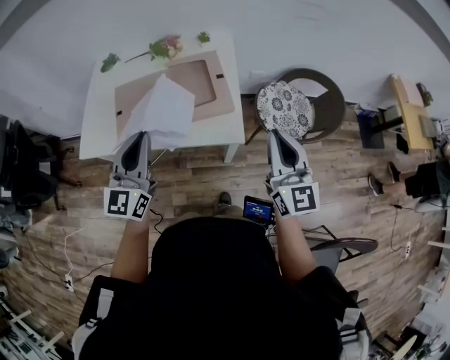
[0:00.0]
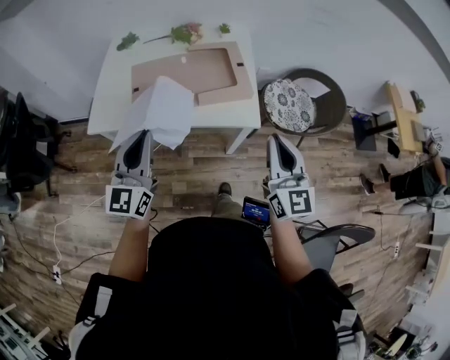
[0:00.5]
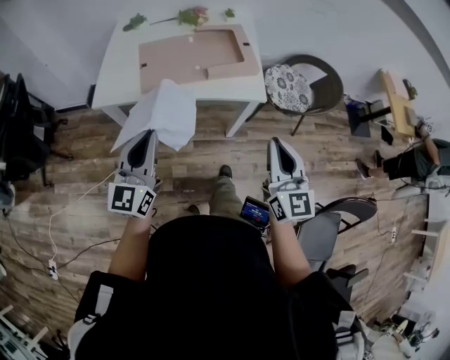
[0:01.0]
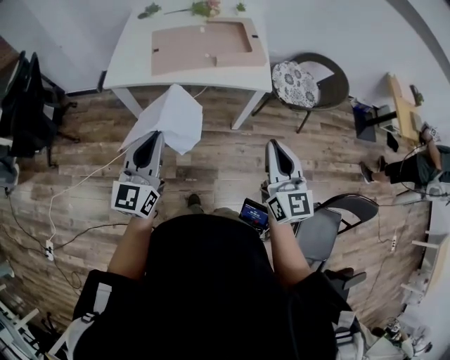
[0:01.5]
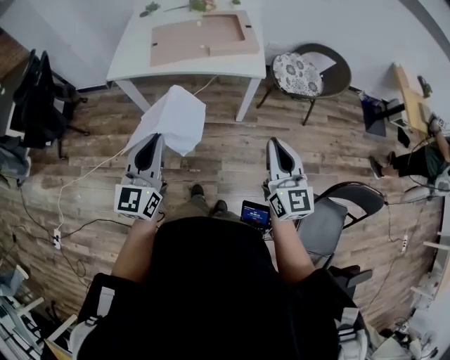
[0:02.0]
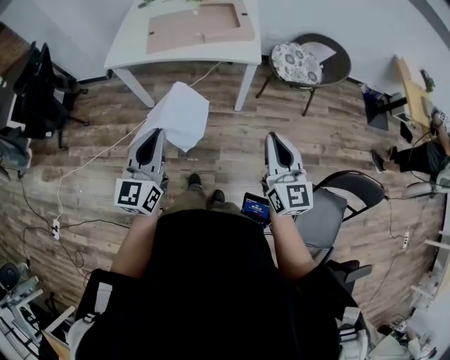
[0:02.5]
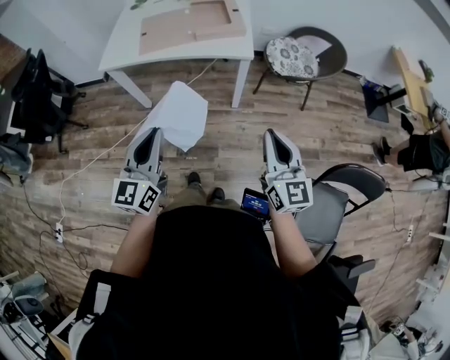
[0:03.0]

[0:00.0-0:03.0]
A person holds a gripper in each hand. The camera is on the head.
0:00.0 to 0:01.5: The grippers both shift backward and to the left by approximately 30 cm.
0:01.5 to 0:03.0: The left gripper shifts about 15 cm backward and to the right; the right gripper travels to the right and backward by approximately 15 cm.

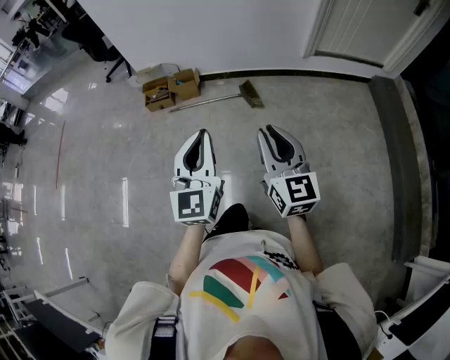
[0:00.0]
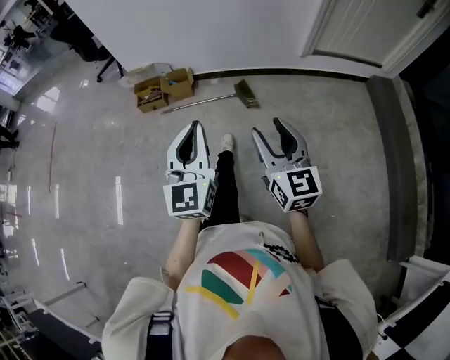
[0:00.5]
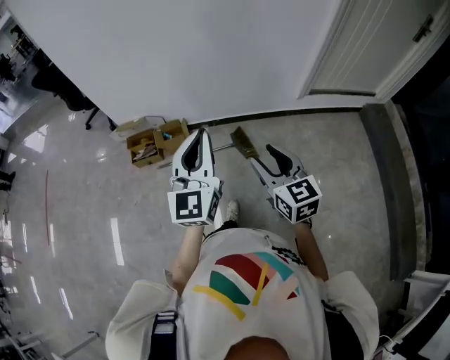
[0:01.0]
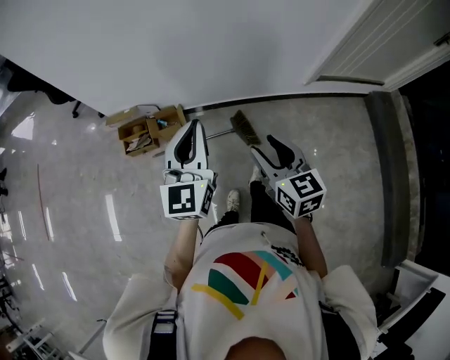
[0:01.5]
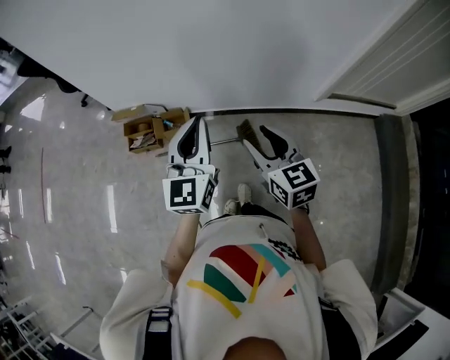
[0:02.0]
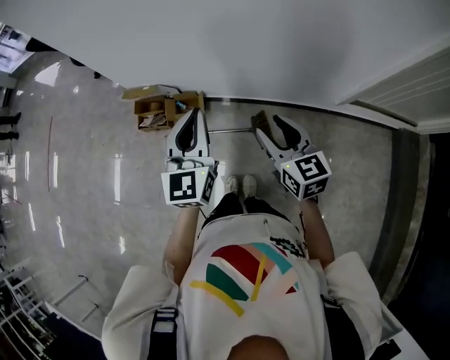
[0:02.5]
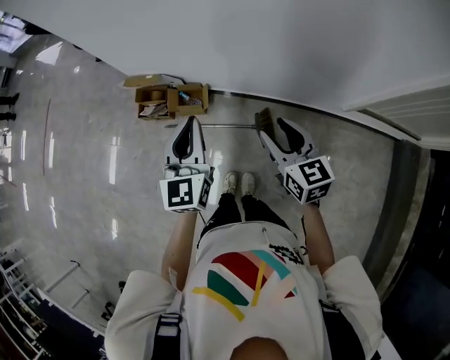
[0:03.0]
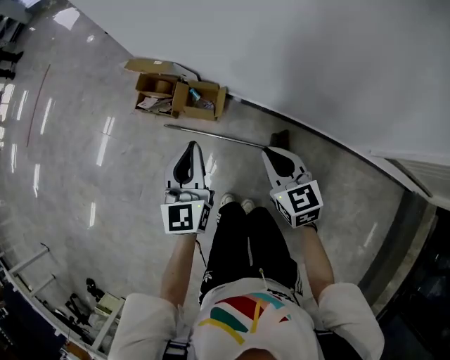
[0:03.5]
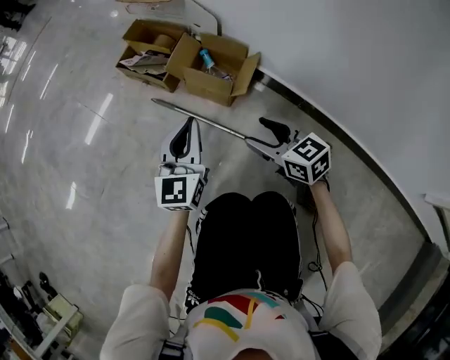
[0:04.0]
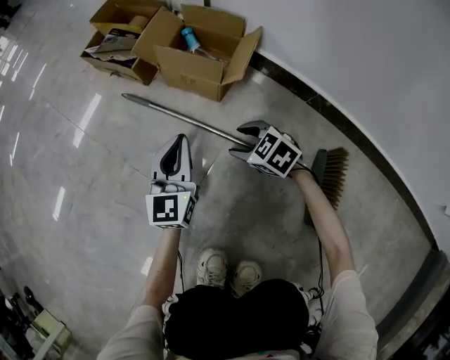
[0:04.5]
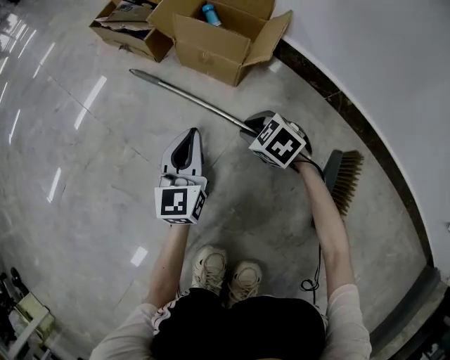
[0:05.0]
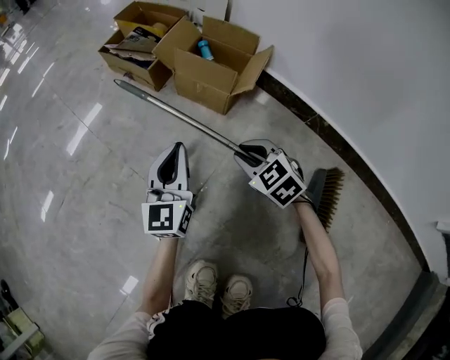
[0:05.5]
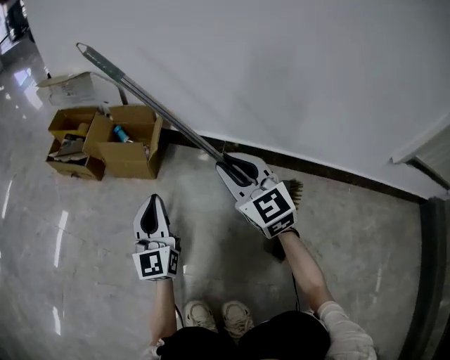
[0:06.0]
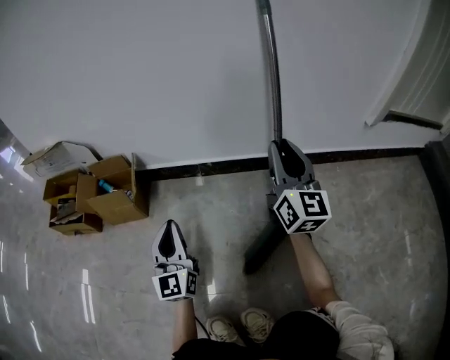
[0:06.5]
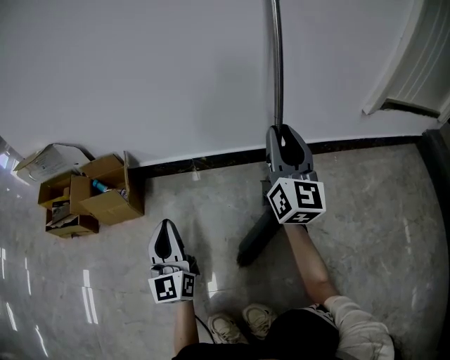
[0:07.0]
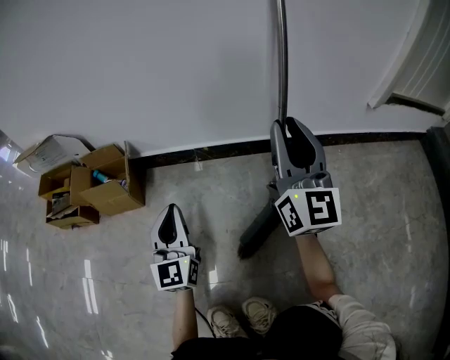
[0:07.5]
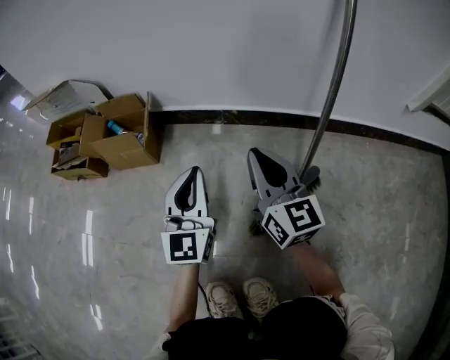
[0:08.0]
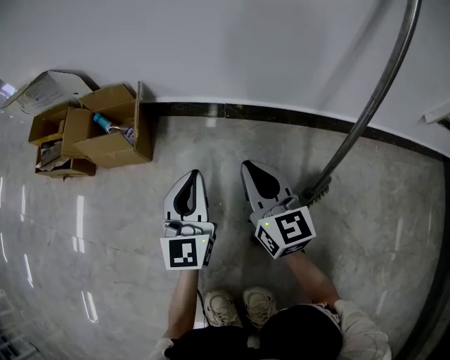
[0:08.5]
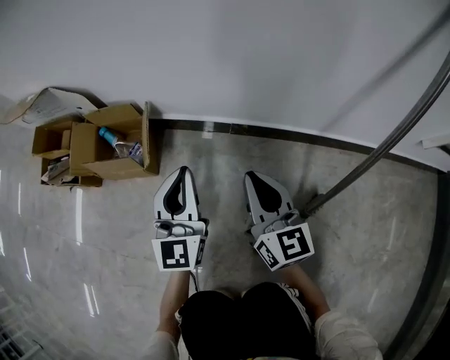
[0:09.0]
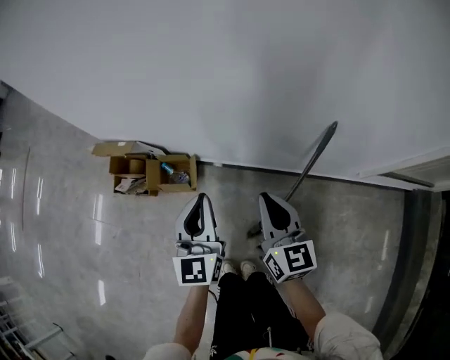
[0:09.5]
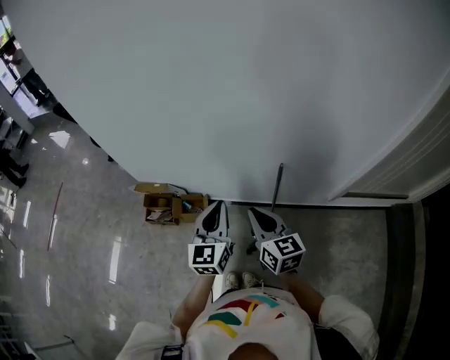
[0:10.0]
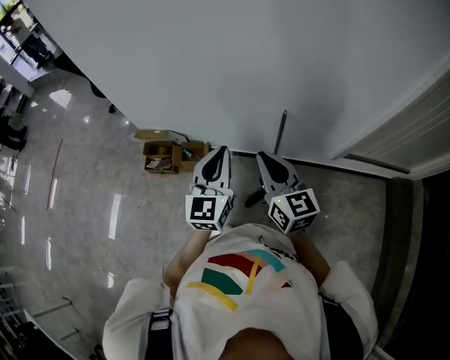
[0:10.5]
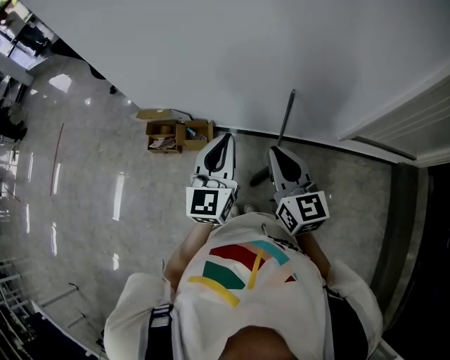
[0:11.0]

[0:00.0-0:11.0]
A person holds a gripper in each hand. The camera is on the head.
0:00.0 to 0:02.0: The pair of grippers is taken forward, about 60 cm. The right gripper changes its angle by roughly 20 degrees, and opens up.
0:02.0 to 0:03.5: The two grippers go roughly 35 cm downward and forward. The right gripper swivels roughly 30 degrees, and closes its fingers; the left gripper rotates approximately 30 degrees.
0:03.5 to 0:05.5: The grippers both shift downward by approximately 60 cm. The right gripper swivels about 40 degrees, and opens, then closes again.
0:05.5 to 0:07.5: The right gripper ends up about 50 cm from where it was, and angles its fingers upward, by approximately 60 degrees. The left gripper changes place by approximately 25 cm, and turns by about 30 degrees.
0:07.5 to 0:09.0: The right gripper travels downward and to the left by some 25 cm, and changes its angle by some 40 degrees. The left gripper shifts roughly 10 cm forward.
0:09.0 to 0:11.0: The two grippers go approximately 80 cm upward.

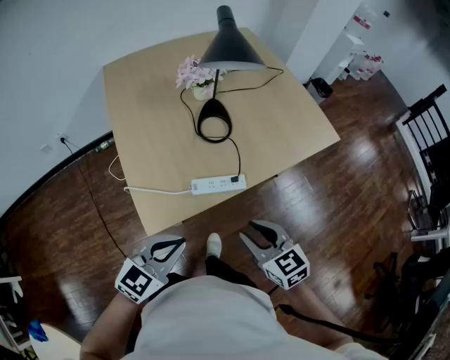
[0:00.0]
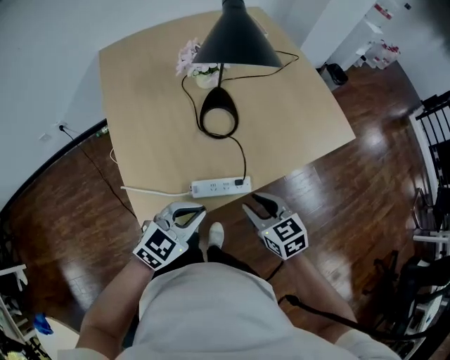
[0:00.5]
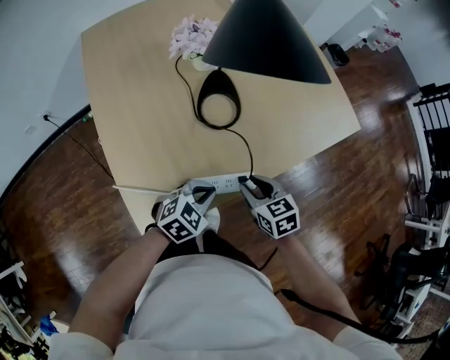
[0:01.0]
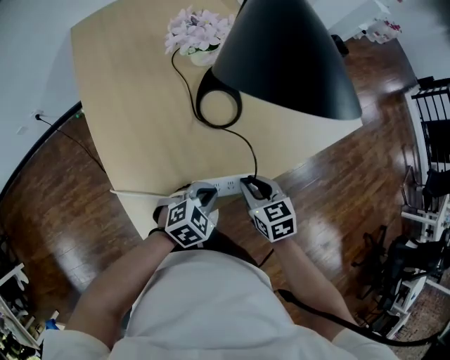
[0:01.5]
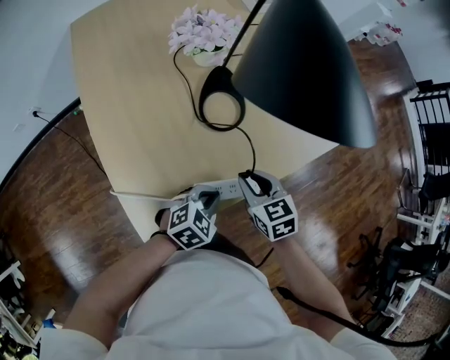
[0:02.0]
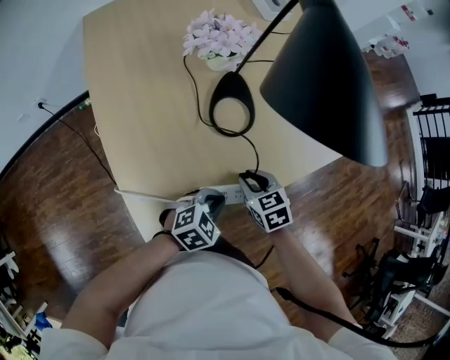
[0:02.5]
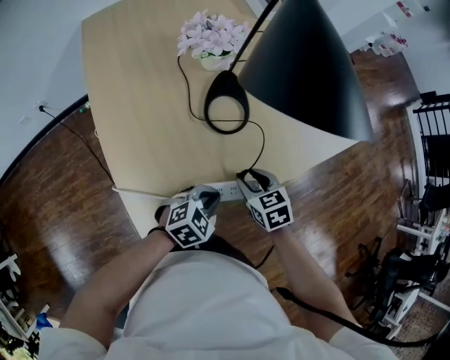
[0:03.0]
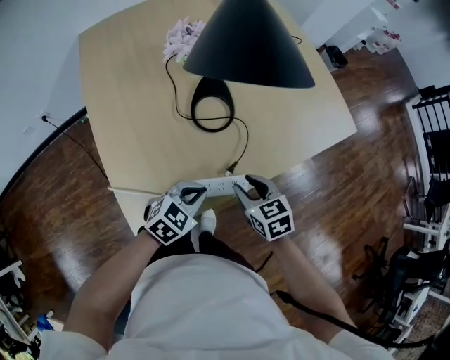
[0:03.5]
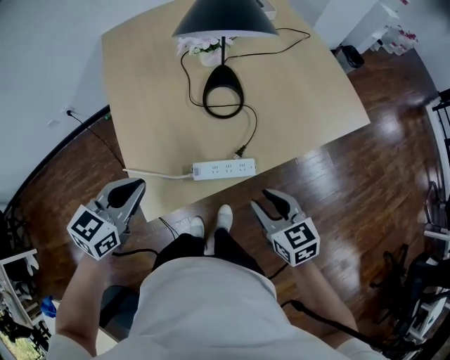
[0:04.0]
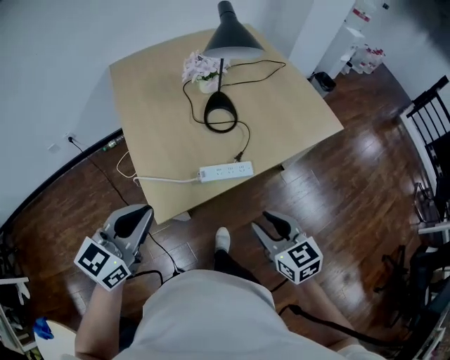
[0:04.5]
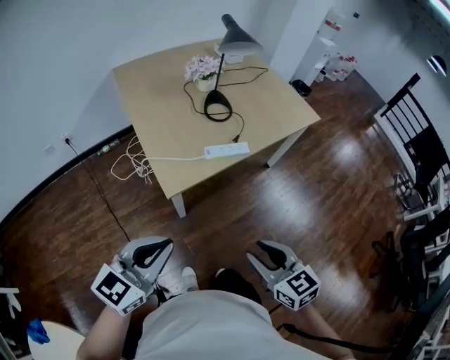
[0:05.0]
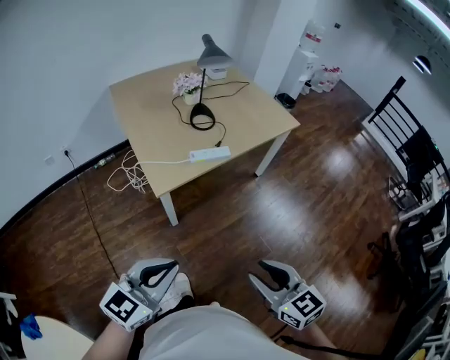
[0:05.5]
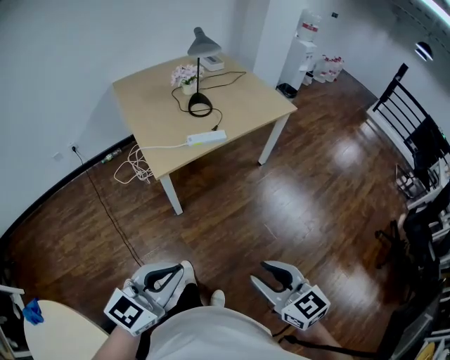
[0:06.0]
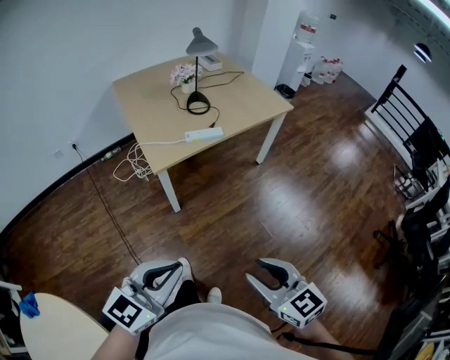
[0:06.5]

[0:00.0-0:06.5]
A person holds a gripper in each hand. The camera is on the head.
0:00.0 to 0:02.0: Both grippers move forward and downward, roughly 25 cm. The left gripper changes its angle by some 30 degrees.
0:02.0 to 0:04.5: The right gripper is displaced backward and upward by roughly 25 cm; the left gripper travels upward, backward and to the left by some 35 cm, and angles its fingers upward, by roughly 30 degrees.
0:04.5 to 0:06.5: Both grippers are carried backward, about 50 cm.

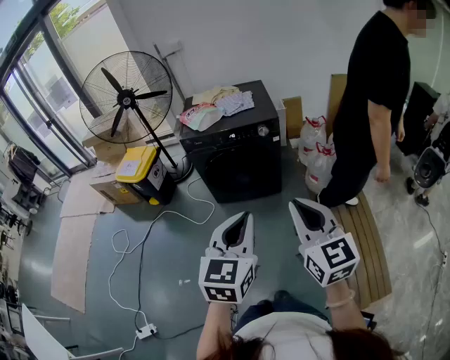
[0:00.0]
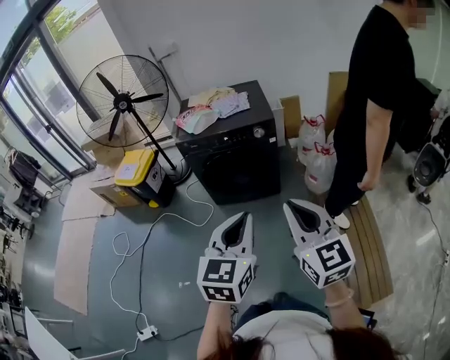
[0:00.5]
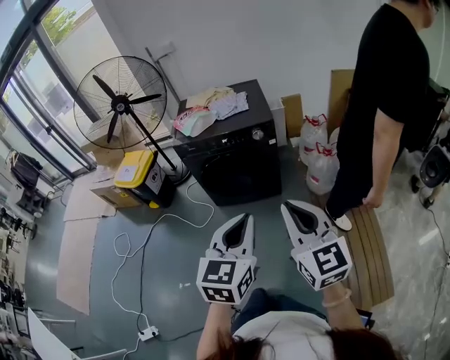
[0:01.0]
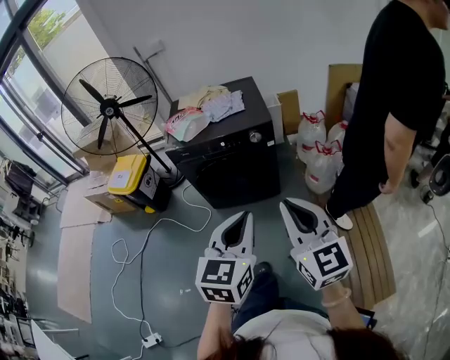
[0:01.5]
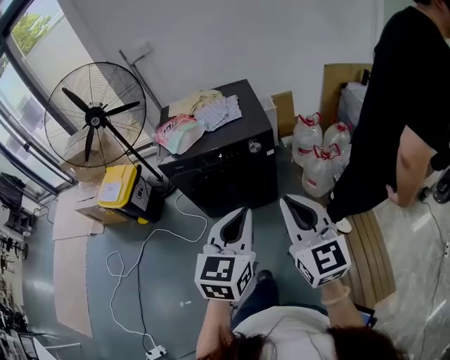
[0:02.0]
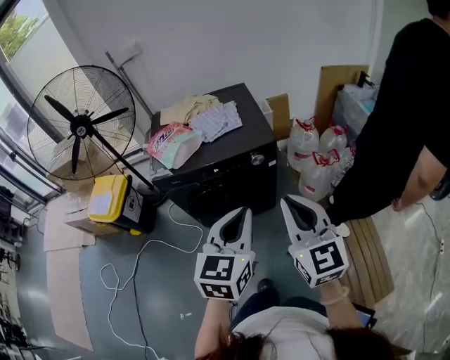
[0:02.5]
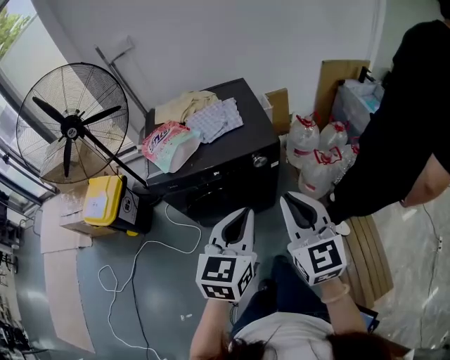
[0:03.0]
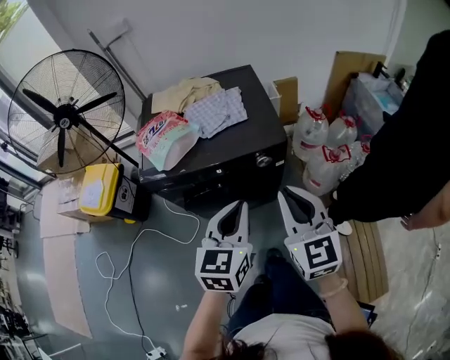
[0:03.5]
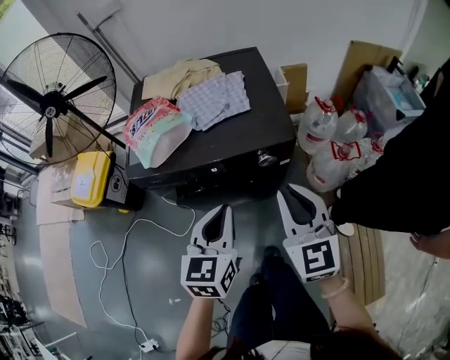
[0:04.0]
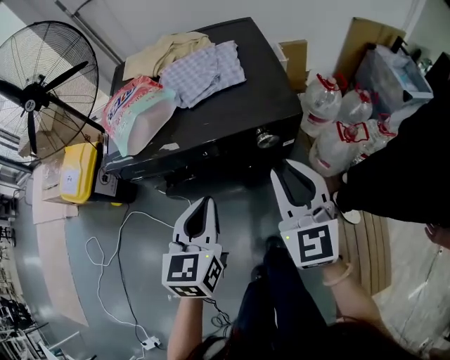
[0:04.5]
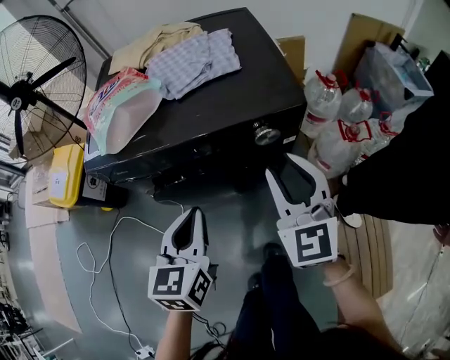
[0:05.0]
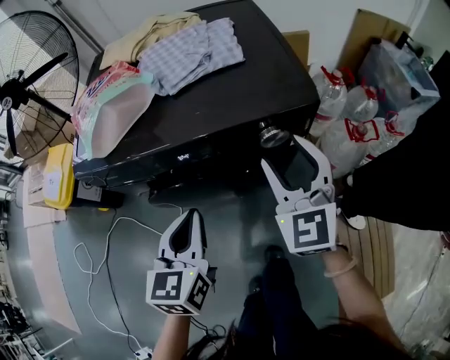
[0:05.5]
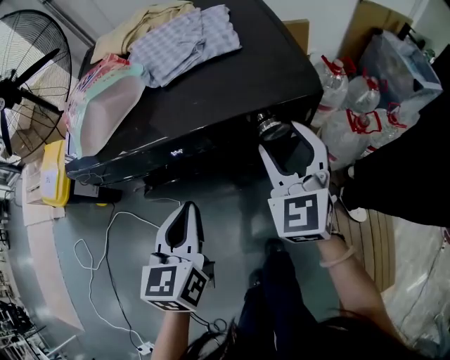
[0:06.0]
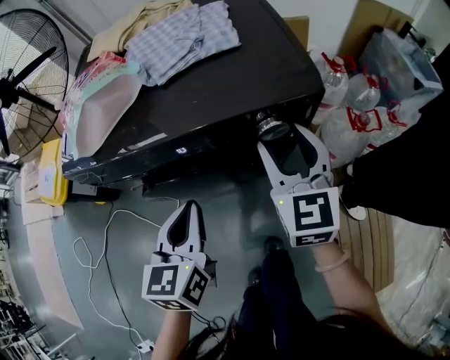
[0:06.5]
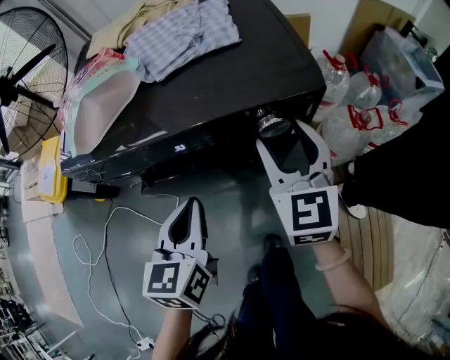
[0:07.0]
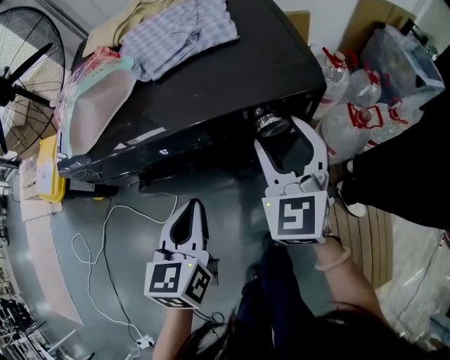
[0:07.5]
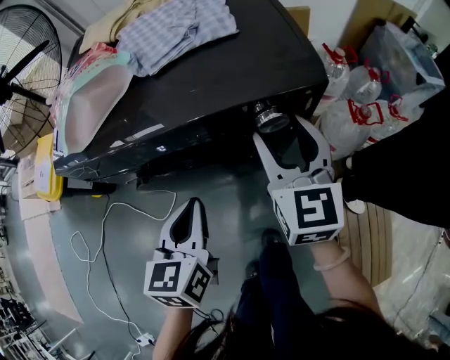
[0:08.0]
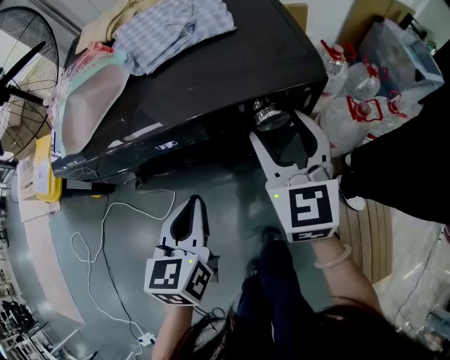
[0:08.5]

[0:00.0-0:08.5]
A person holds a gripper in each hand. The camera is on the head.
0:00.0 to 0:02.0: The two grippers go approximately 20 cm forward.
0:02.0 to 0:04.0: Both grippers move forward and downward, roughly 30 cm.
0:04.0 to 0:06.5: The left gripper is displaced downward by approximately 20 cm. The right gripper heads downward and forward, covering approximately 25 cm, and opens up.
0:06.5 to 0:08.5: The grippers move only a little.
